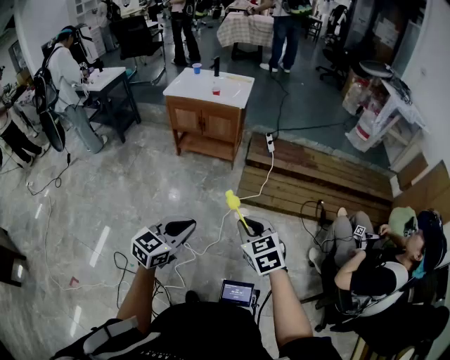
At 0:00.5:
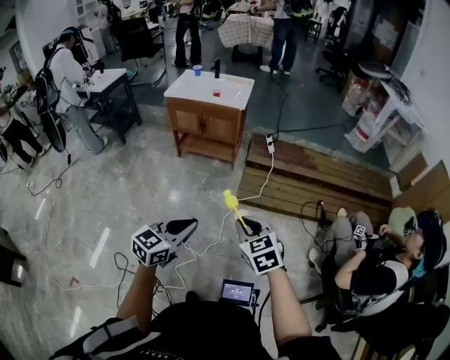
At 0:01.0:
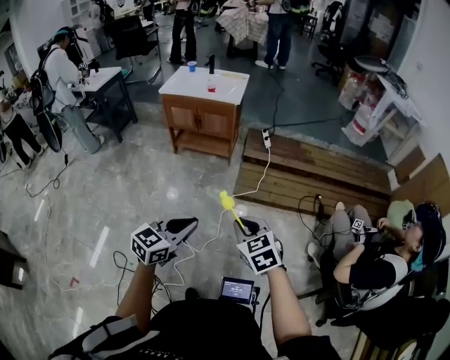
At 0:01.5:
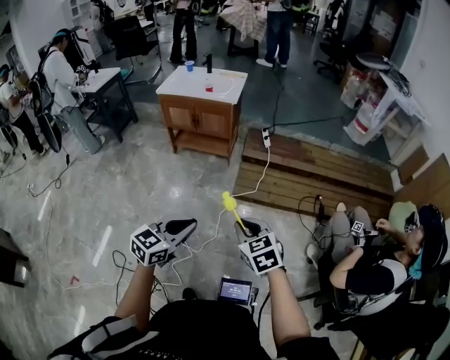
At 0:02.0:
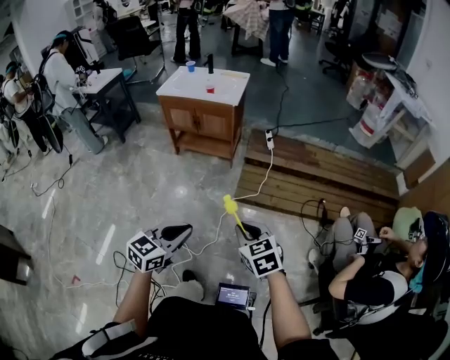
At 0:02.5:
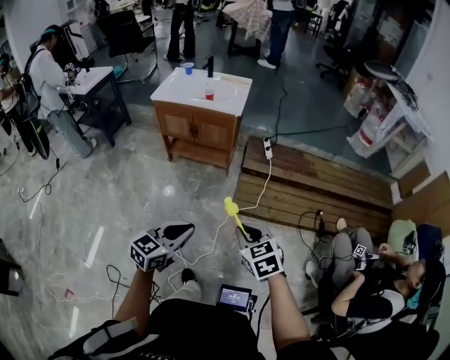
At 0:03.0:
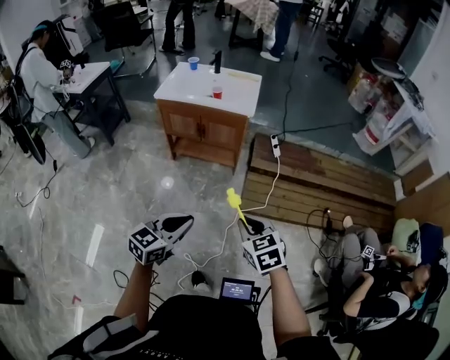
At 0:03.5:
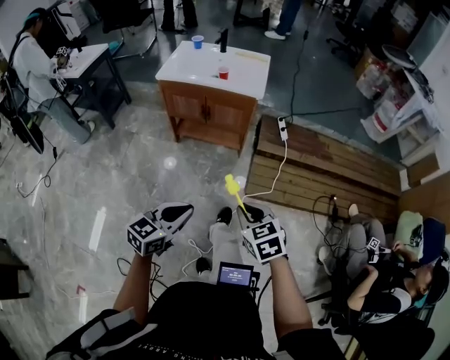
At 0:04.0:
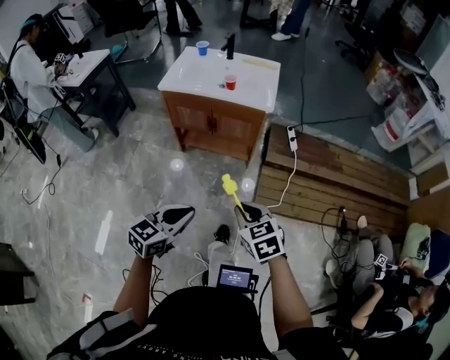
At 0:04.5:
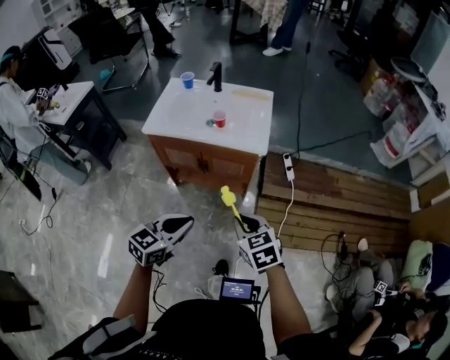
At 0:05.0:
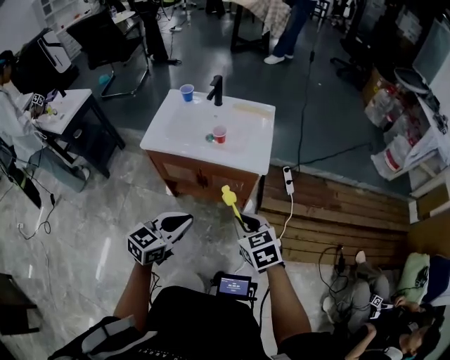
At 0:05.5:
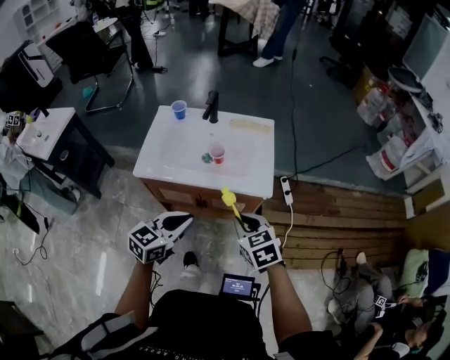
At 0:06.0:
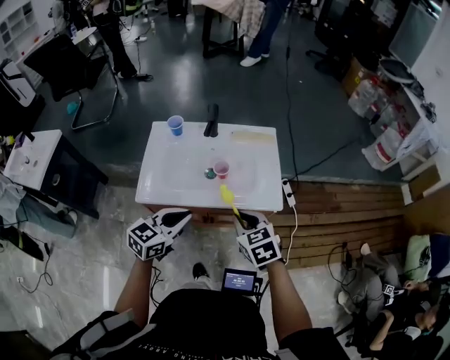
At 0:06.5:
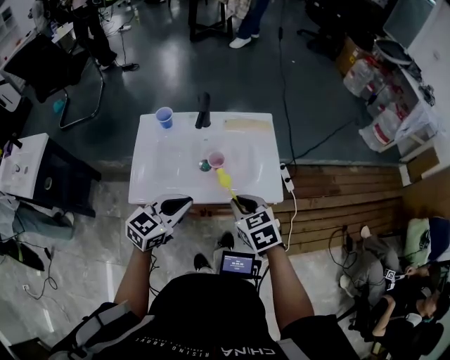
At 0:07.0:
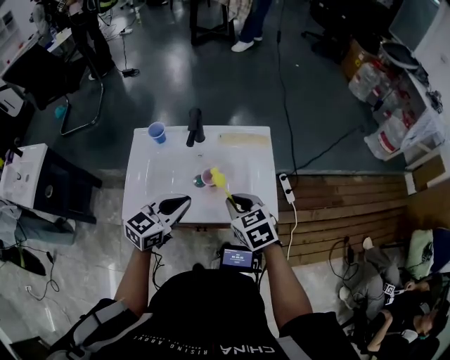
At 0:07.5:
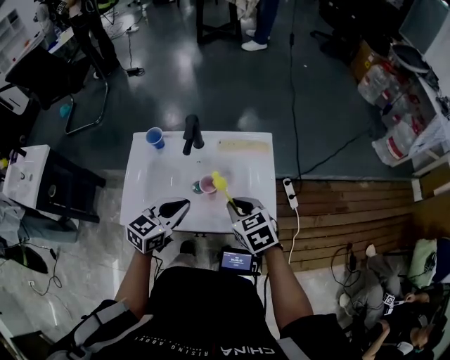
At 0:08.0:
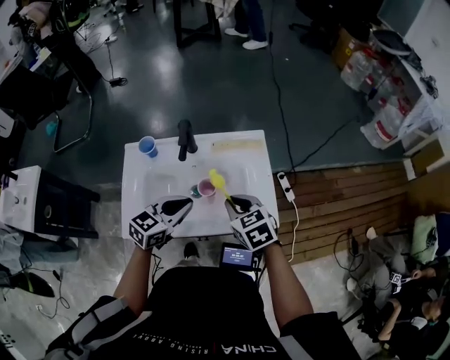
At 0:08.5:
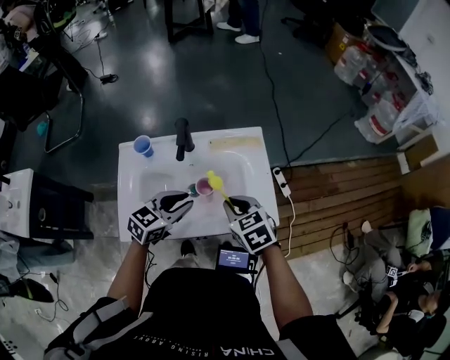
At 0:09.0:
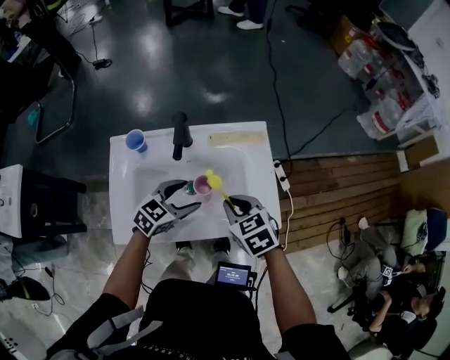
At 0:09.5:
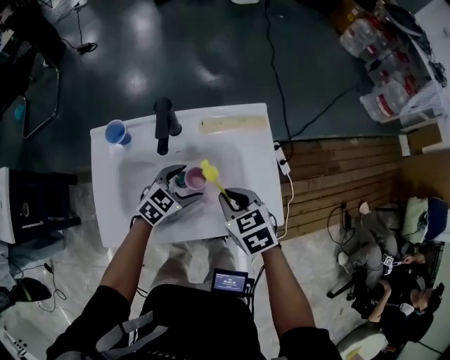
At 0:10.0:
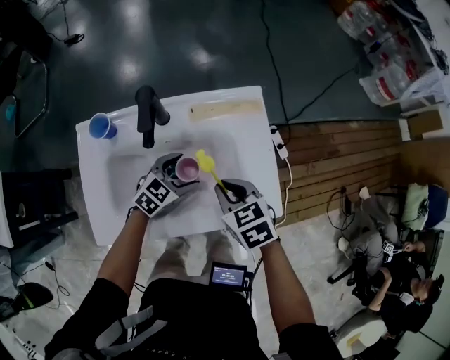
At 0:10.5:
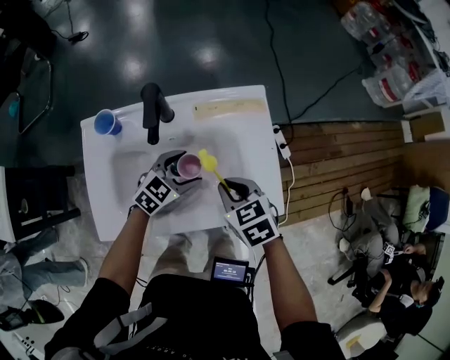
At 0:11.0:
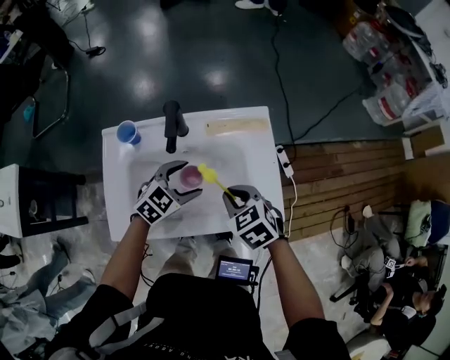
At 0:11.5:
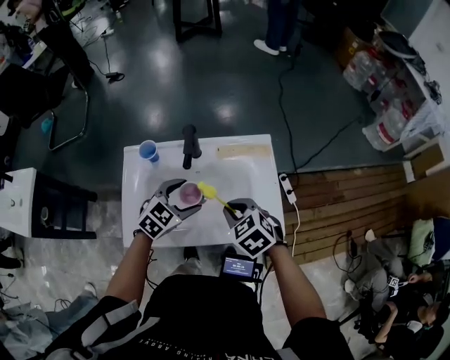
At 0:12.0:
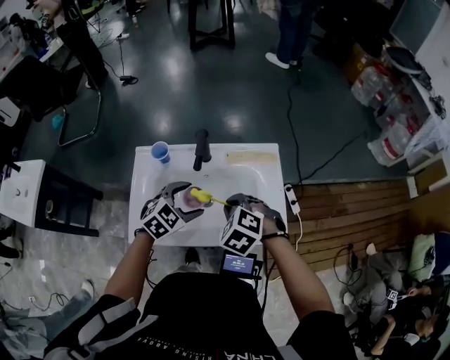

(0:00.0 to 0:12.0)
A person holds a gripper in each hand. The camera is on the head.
0:00.0 - 0:02.0: Both grippers move to the right, about 5 cm.
0:02.0 - 0:04.0: The two grippers go approximately 40 cm forward and to the left.
0:04.0 - 0:06.0: The two grippers travel together, forward, some 50 cm.
0:06.0 - 0:08.0: Both grippers travel together forward, roughly 20 cm.
0:08.0 - 0:10.0: The left gripper moves downward and forward, about 20 cm, rotates roughly 20 degrees, and opens; the right gripper moves downward, some 10 cm.
0:10.0 - 0:12.0: The right gripper travels upward and to the left by approximately 10 cm, and twists some 40 degrees counterclockwise, seen from behind. The left gripper moves upward and to the left, about 15 cm.

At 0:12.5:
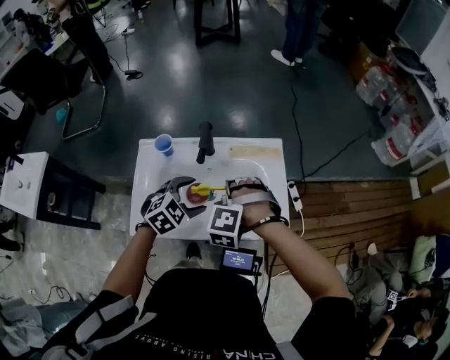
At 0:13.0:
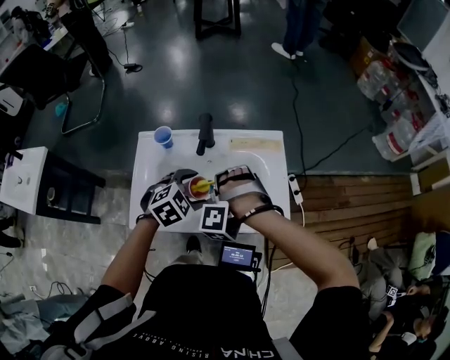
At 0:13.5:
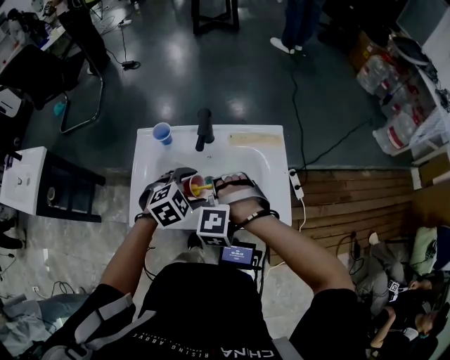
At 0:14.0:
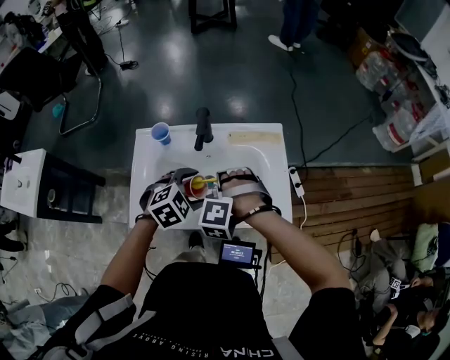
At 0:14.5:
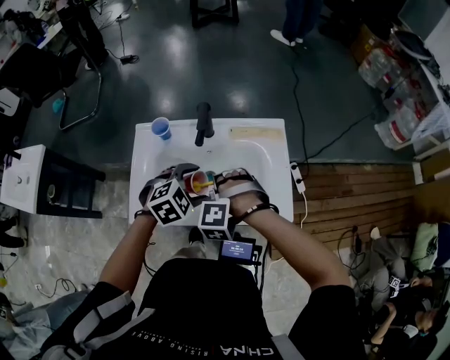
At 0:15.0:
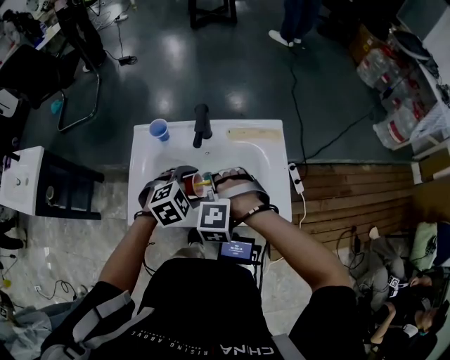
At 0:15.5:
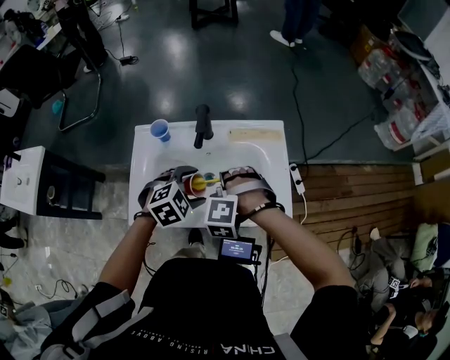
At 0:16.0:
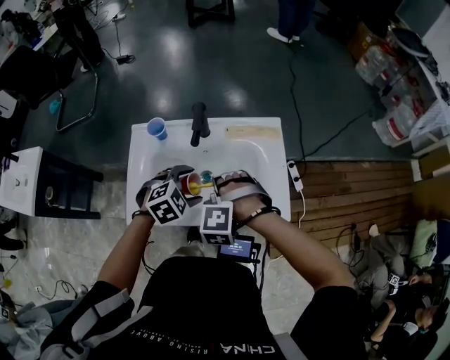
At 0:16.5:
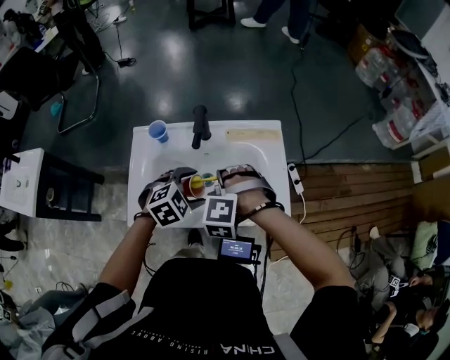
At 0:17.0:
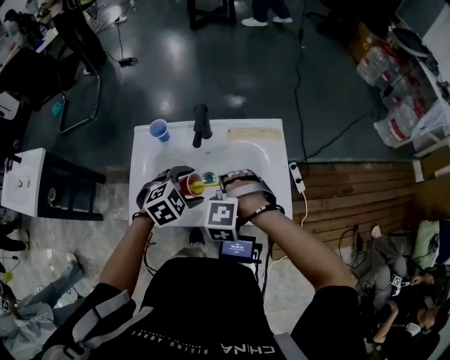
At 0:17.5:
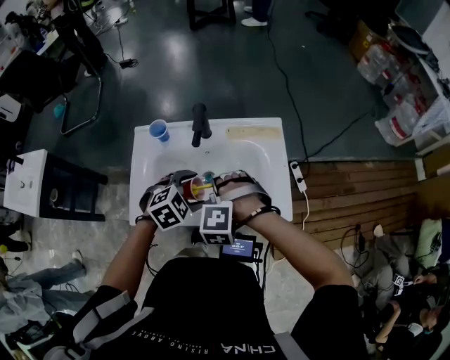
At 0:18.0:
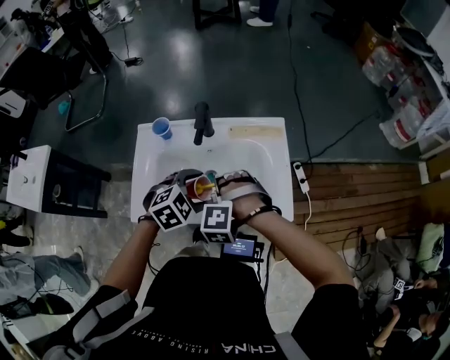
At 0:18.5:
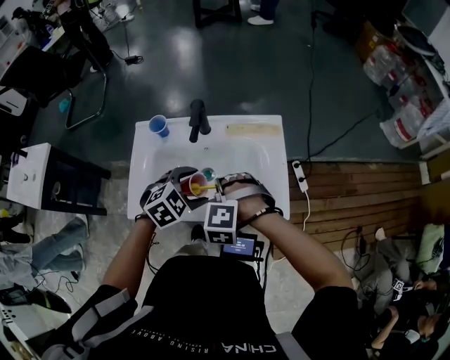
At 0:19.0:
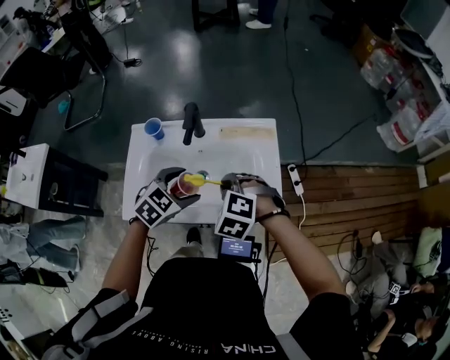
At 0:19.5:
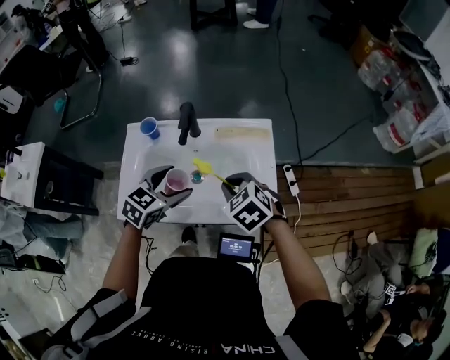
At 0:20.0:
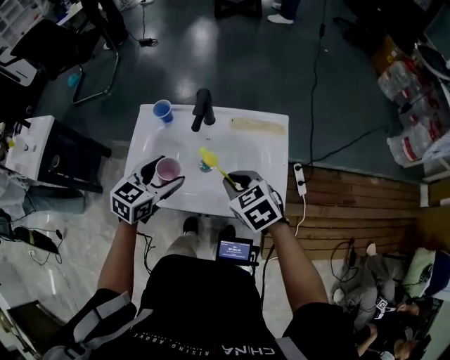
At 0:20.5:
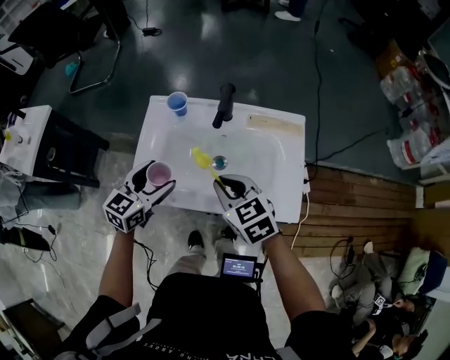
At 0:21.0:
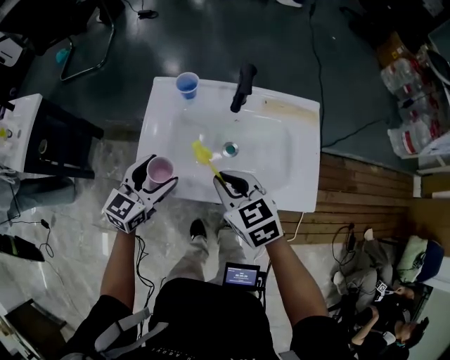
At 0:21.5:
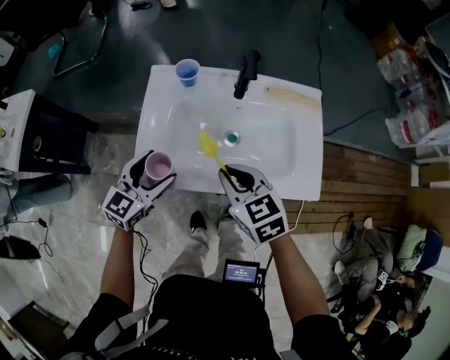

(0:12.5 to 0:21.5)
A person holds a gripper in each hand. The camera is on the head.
0:12.5 - 0:14.5: The right gripper changes place by approximately 5 cm.
0:14.5 - 0:17.0: The grippers move only a little.
0:17.0 - 0:19.5: The right gripper changes place by roughly 5 cm, and rotates around the line of its fingers by approximately 50 degrees, clockwise from behind. Meanwhile the left gripper swivels approximately 30 degrees.
0:19.5 - 0:21.5: The grippers both shift to the left by some 20 cm. The left gripper rotates roughly 20 degrees.

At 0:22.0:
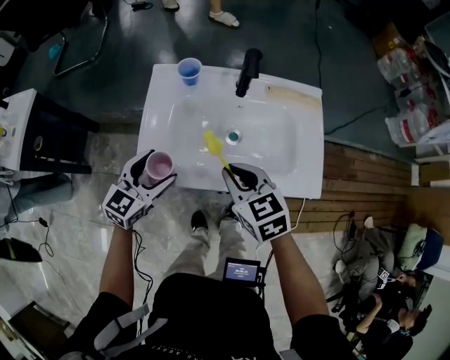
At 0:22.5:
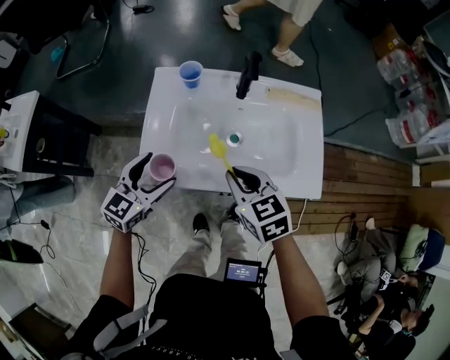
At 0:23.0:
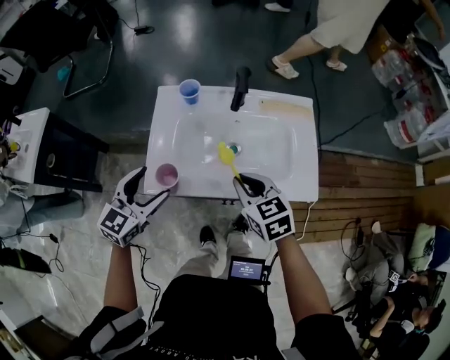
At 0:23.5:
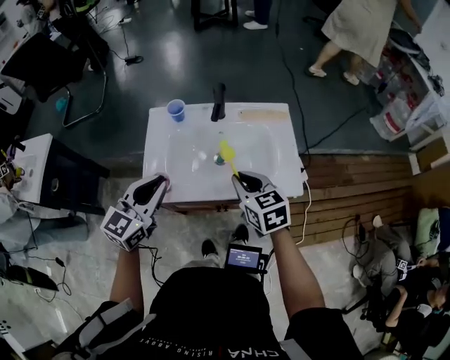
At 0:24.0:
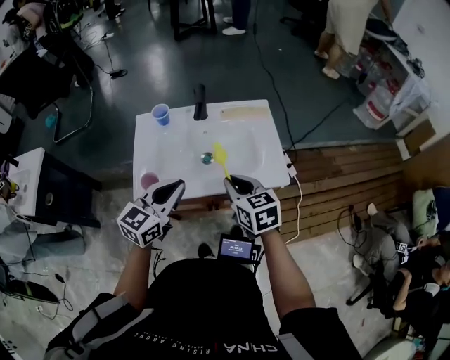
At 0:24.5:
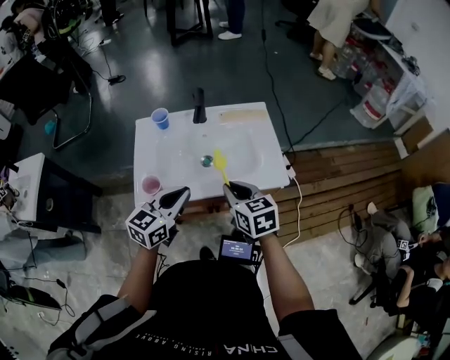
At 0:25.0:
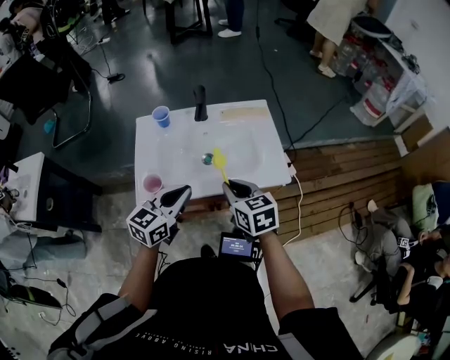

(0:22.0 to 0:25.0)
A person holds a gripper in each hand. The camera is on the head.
0:22.0 - 0:23.5: The right gripper moves to the right and upward, some 10 cm, while the left gripper travels upward by about 15 cm, and closes.
0:23.5 - 0:25.0: The right gripper shifts some 5 cm backward. Meanwhile the left gripper travels to the right and downward by about 10 cm.

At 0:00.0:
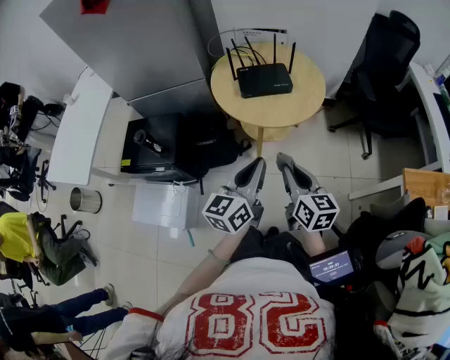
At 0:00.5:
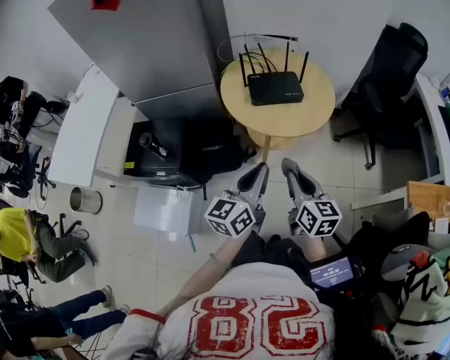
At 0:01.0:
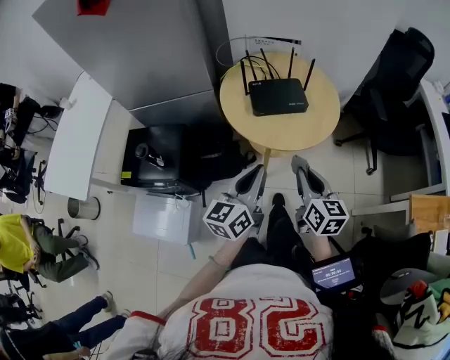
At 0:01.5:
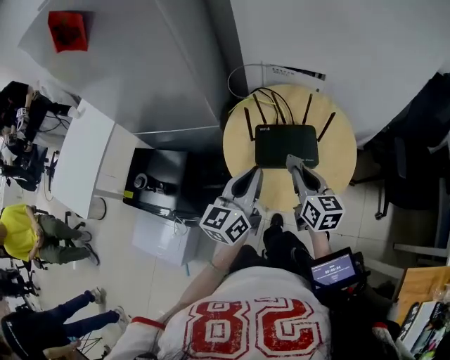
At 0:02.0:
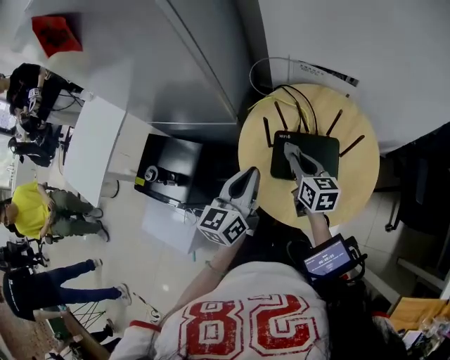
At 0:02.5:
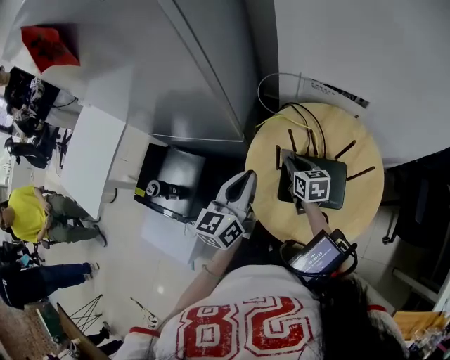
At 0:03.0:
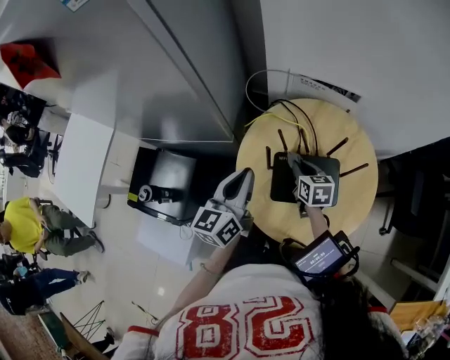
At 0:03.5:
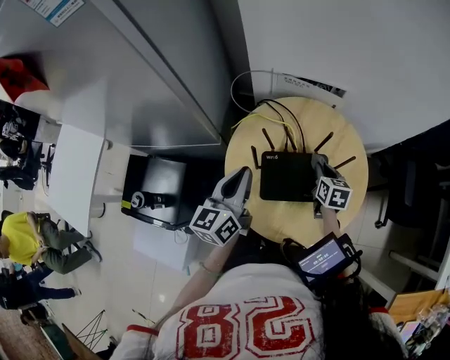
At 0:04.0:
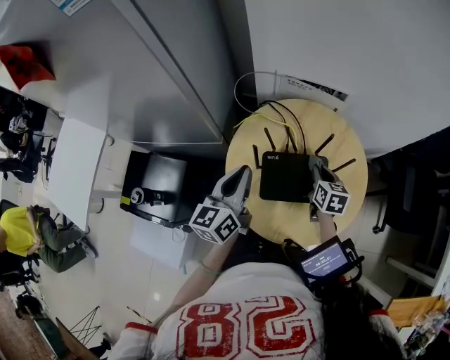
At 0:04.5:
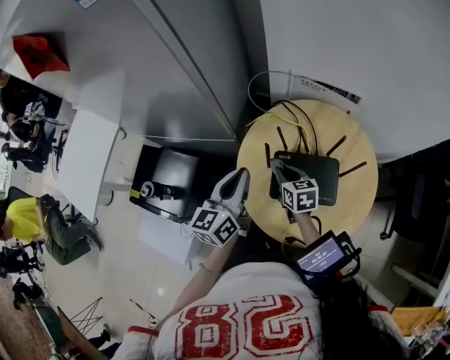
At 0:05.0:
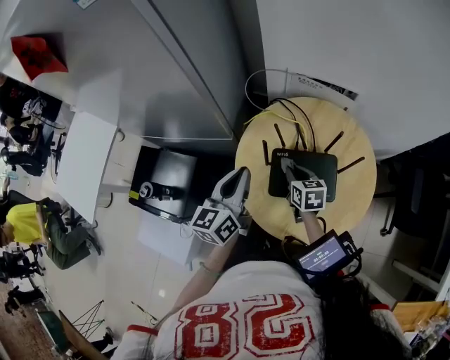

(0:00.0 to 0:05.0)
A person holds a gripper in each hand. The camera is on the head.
0:00.0 - 0:02.5: Both grippers are carried forward, roughly 40 cm. The right gripper rotates about 30 degrees. The left gripper rotates some 20 degrees.
0:02.5 - 0:05.0: The right gripper moves left and right over approximately 20 cm, changing direction 2 times.
